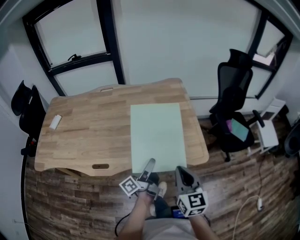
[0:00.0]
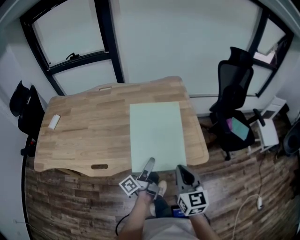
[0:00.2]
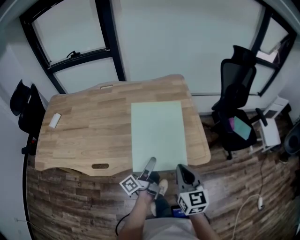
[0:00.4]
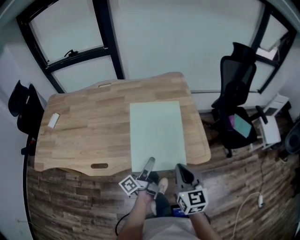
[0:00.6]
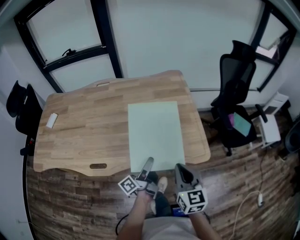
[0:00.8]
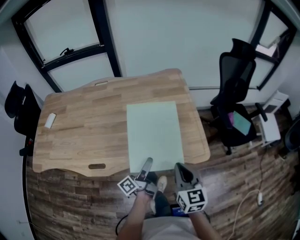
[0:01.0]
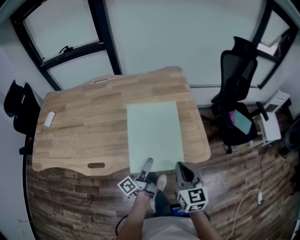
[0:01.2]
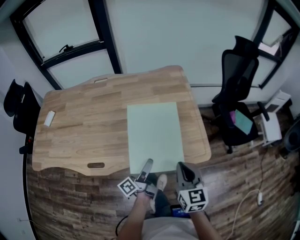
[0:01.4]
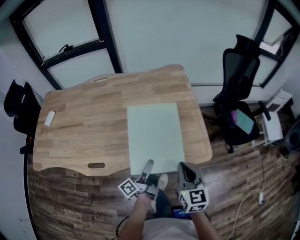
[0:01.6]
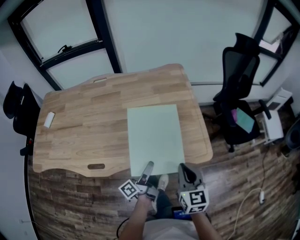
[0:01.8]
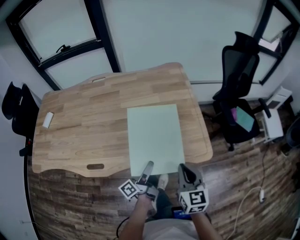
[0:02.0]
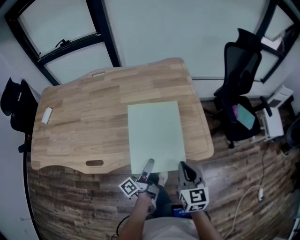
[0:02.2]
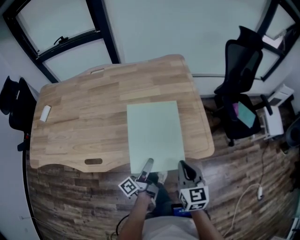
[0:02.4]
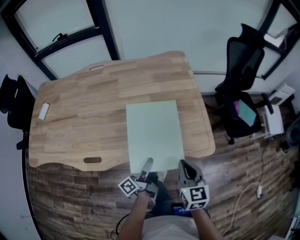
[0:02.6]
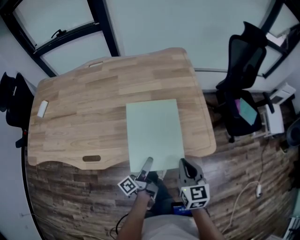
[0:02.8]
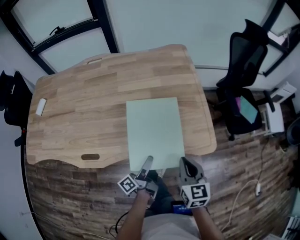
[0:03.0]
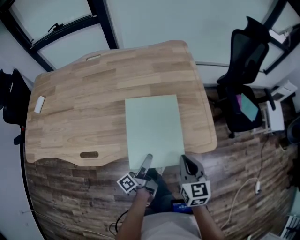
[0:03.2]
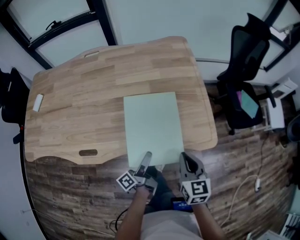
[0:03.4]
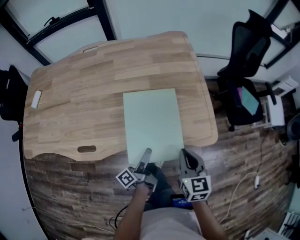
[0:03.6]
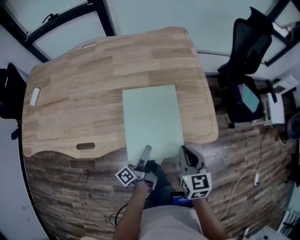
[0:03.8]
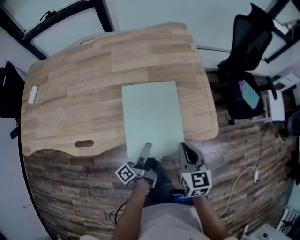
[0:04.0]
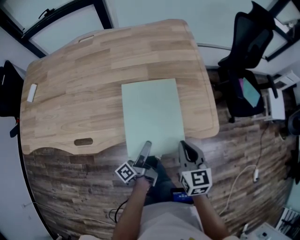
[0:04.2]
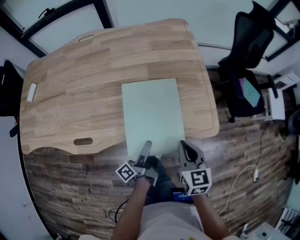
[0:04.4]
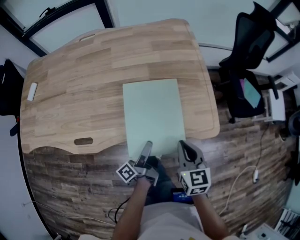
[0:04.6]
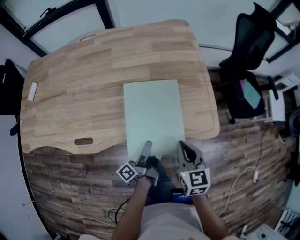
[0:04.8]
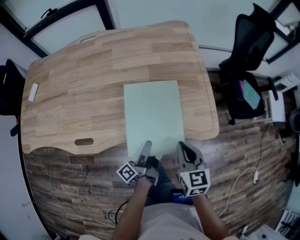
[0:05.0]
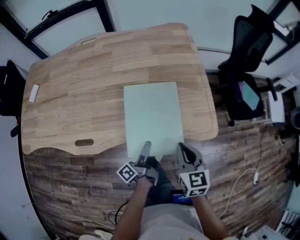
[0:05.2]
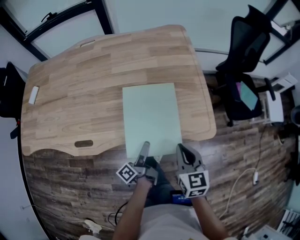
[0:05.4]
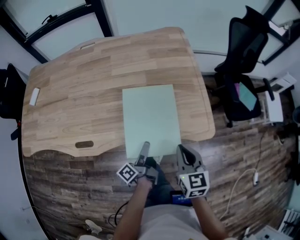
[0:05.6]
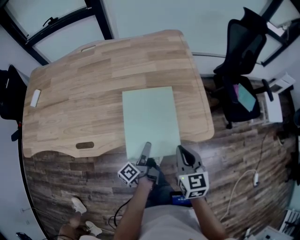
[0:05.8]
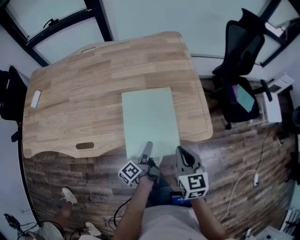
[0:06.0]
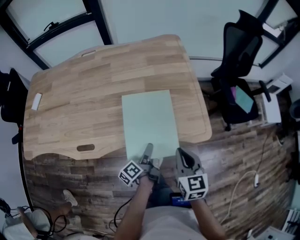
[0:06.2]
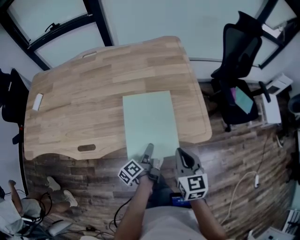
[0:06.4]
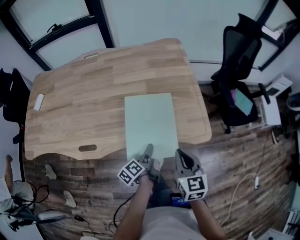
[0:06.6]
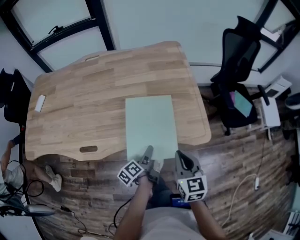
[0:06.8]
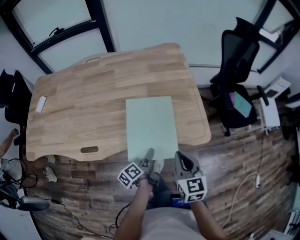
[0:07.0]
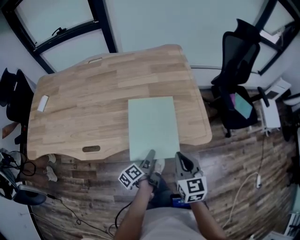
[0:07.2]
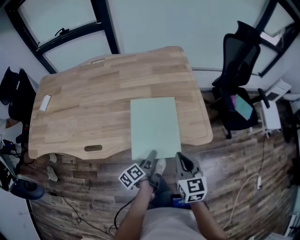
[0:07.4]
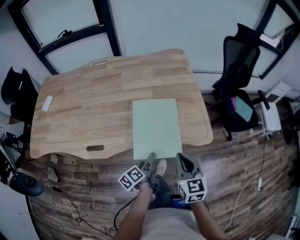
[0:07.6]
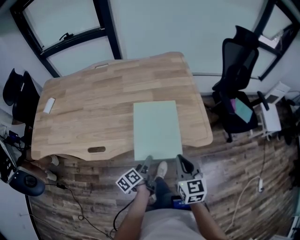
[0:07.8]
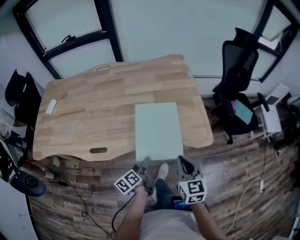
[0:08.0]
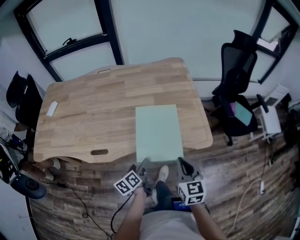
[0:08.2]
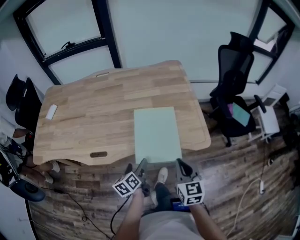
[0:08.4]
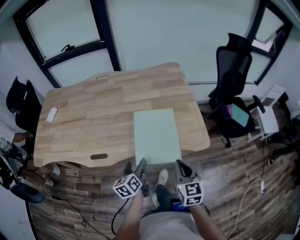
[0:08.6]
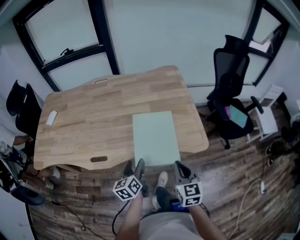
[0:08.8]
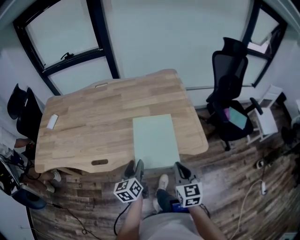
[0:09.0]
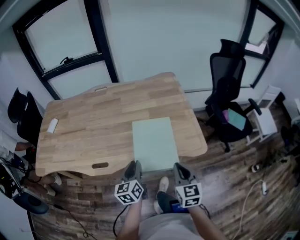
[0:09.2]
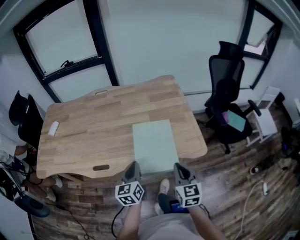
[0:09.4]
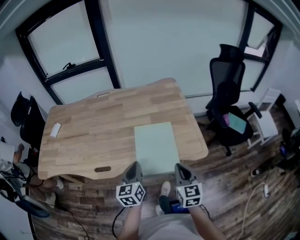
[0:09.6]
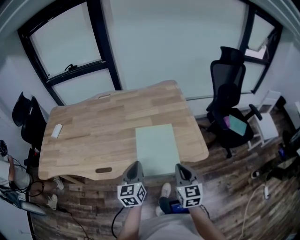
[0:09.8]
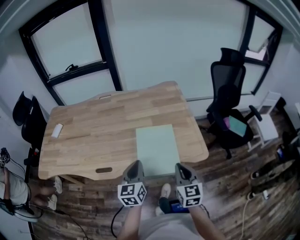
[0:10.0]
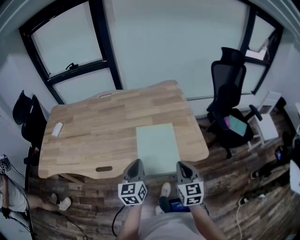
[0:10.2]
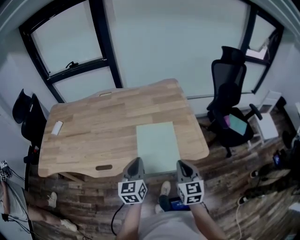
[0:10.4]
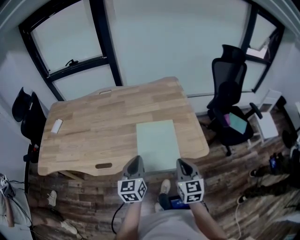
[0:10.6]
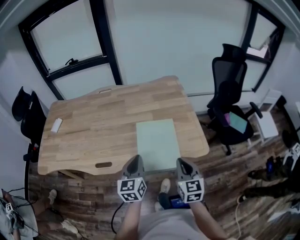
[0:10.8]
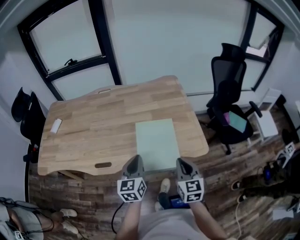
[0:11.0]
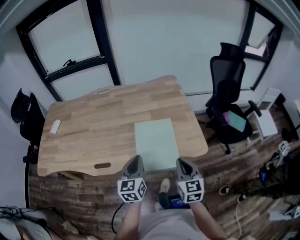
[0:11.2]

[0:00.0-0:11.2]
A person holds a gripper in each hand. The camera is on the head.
0:00.0 to 0:01.6: The right gripper travels downward by about 5 cm.
0:01.6 to 0:03.2: The right gripper is displaced downward by about 5 cm.

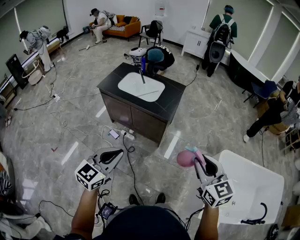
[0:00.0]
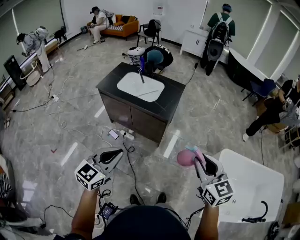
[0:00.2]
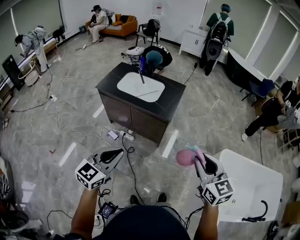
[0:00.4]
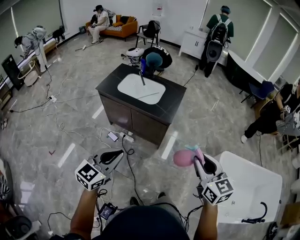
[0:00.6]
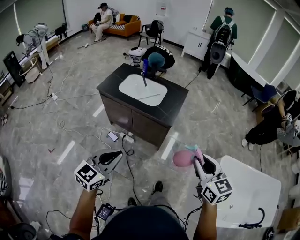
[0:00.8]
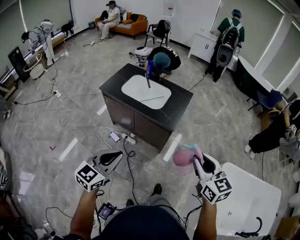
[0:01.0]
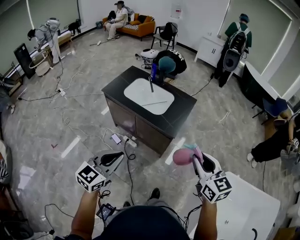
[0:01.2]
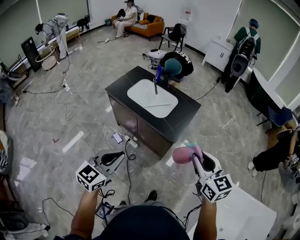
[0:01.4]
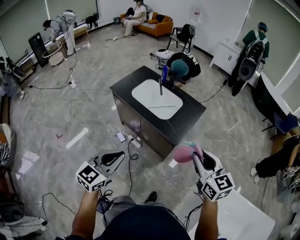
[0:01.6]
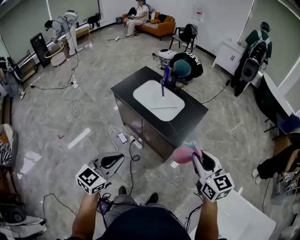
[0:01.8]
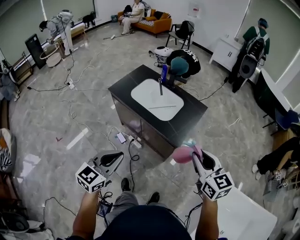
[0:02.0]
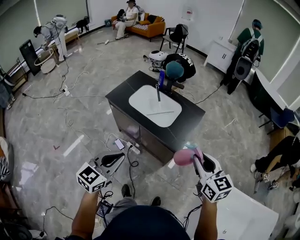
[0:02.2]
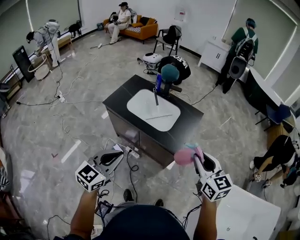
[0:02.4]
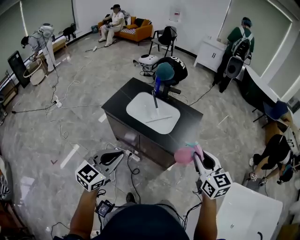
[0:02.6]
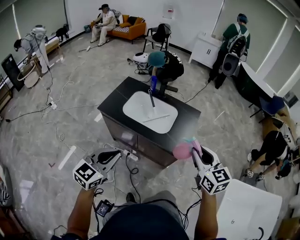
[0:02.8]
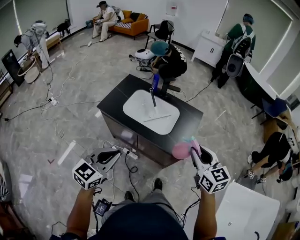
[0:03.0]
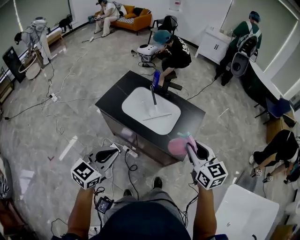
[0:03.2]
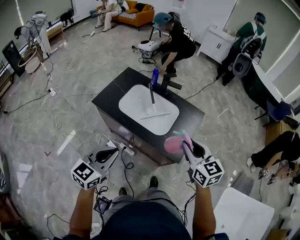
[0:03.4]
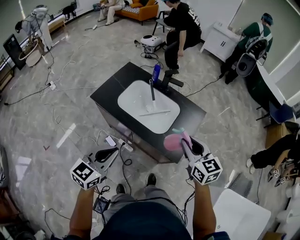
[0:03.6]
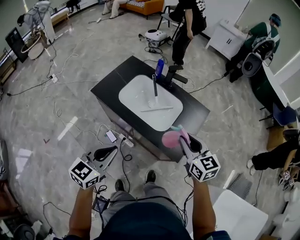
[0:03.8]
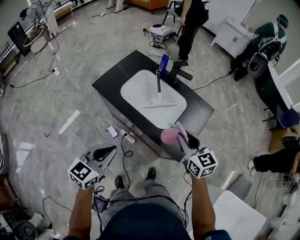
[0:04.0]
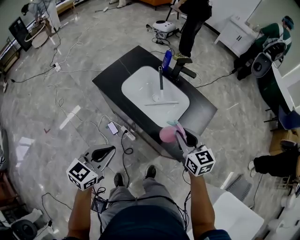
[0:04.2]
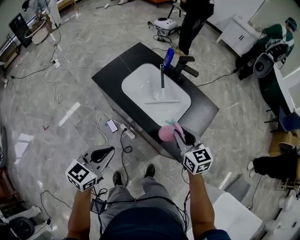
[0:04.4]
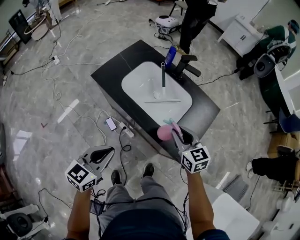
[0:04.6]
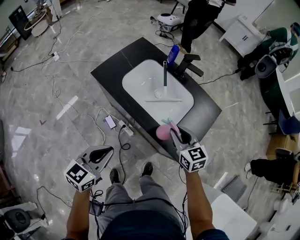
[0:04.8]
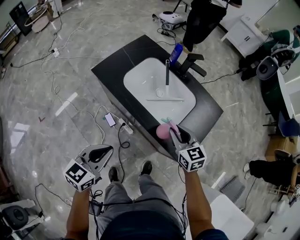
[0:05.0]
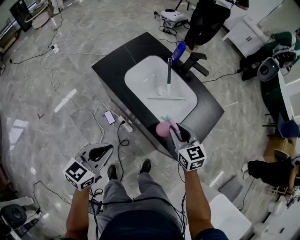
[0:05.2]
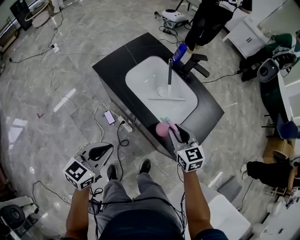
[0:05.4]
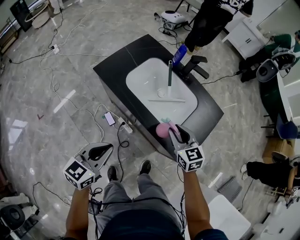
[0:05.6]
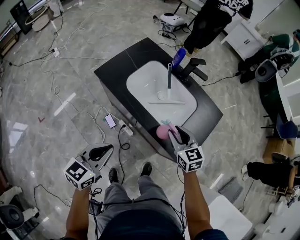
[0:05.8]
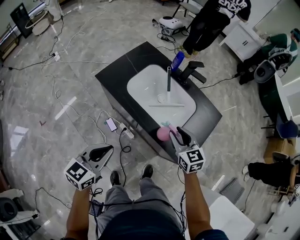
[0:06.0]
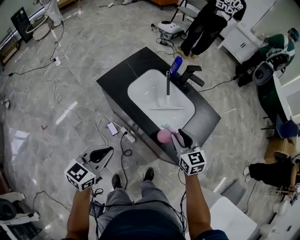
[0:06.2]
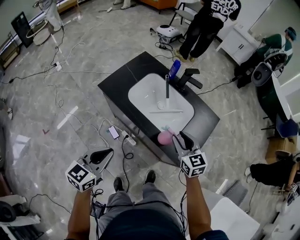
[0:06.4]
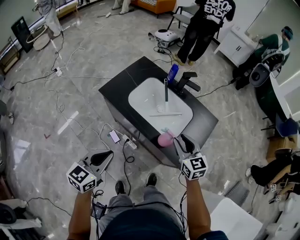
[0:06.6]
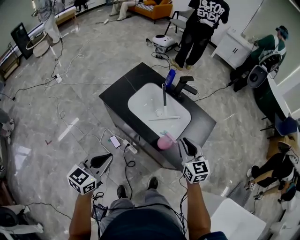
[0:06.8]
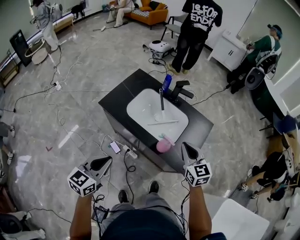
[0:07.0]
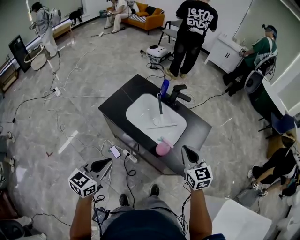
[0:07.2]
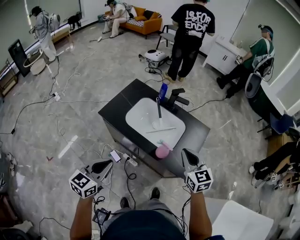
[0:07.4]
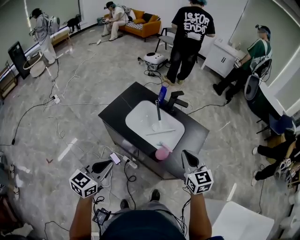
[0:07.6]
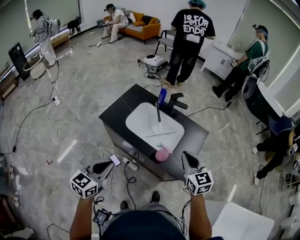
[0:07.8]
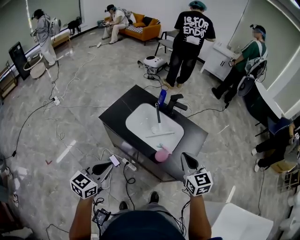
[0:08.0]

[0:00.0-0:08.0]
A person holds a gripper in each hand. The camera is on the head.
0:00.0 to 0:01.6: The right gripper travels forward by about 25 cm. Meanwhile the left gripper heads forward, covering about 15 cm.
0:01.6 to 0:03.2: Both grippers travel together forward and to the left, approximately 25 cm.
0:03.2 to 0:04.8: The left gripper is displaced downward by approximately 15 cm. Meanwhile the right gripper heads downward and forward, covering roughly 30 cm.
0:04.8 to 0:06.4: The right gripper heads upward, covering some 5 cm; the left gripper moves to the left, approximately 5 cm.
0:06.4 to 0:08.0: The left gripper travels upward by about 5 cm. Meanwhile the right gripper travels upward and backward by some 15 cm, and closes up.

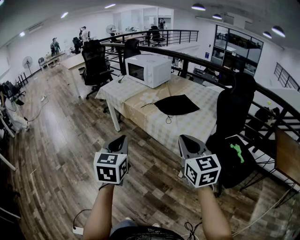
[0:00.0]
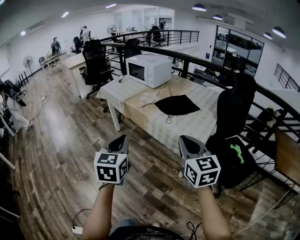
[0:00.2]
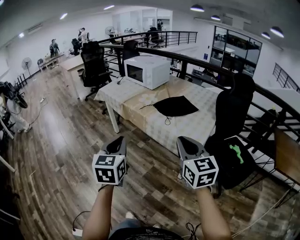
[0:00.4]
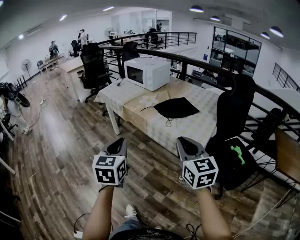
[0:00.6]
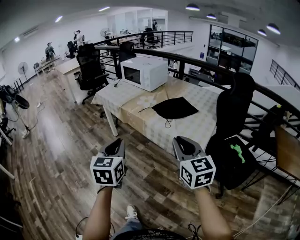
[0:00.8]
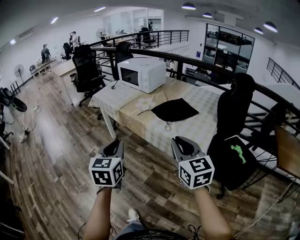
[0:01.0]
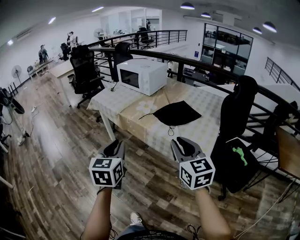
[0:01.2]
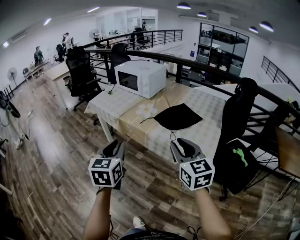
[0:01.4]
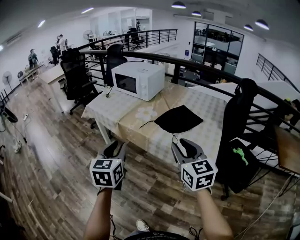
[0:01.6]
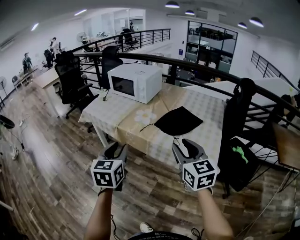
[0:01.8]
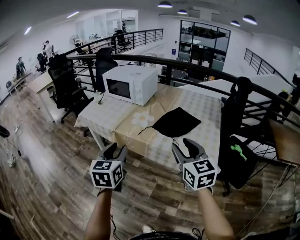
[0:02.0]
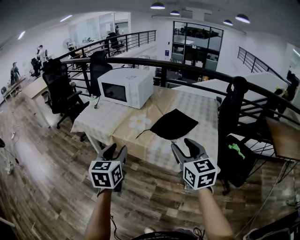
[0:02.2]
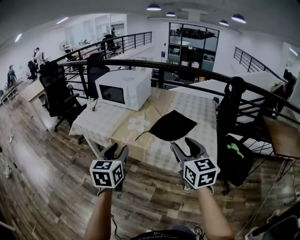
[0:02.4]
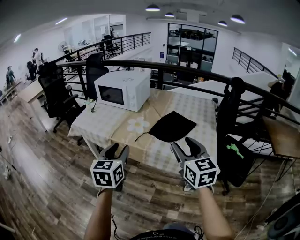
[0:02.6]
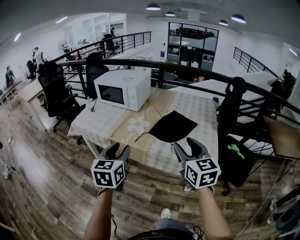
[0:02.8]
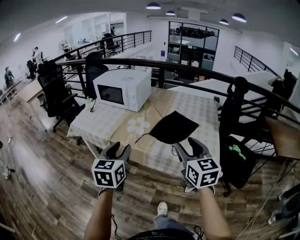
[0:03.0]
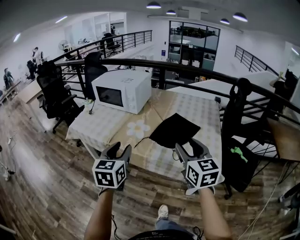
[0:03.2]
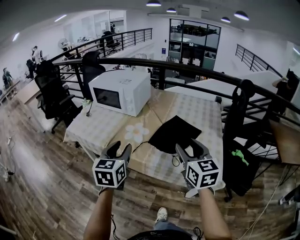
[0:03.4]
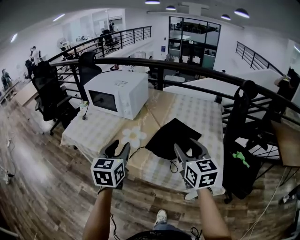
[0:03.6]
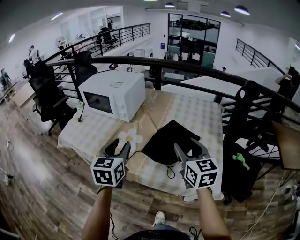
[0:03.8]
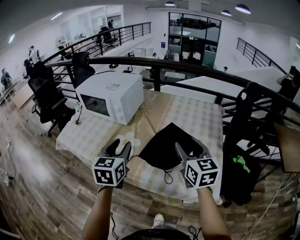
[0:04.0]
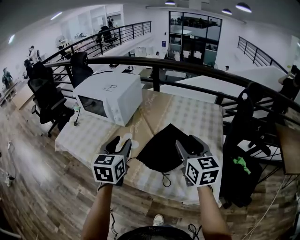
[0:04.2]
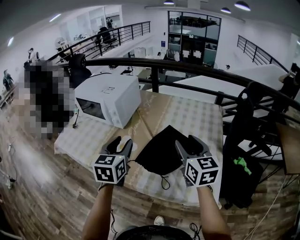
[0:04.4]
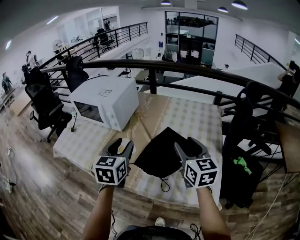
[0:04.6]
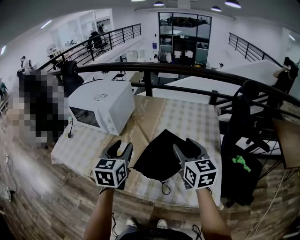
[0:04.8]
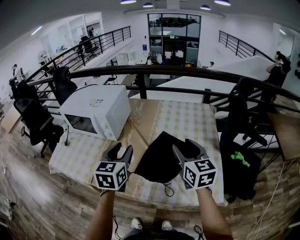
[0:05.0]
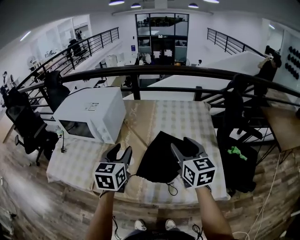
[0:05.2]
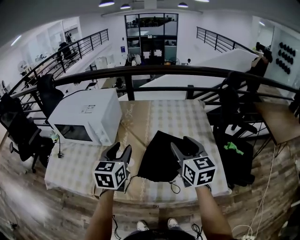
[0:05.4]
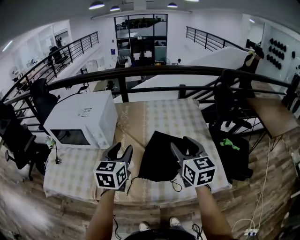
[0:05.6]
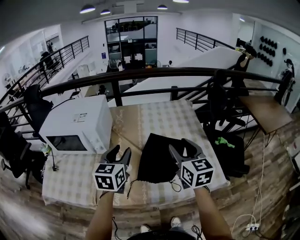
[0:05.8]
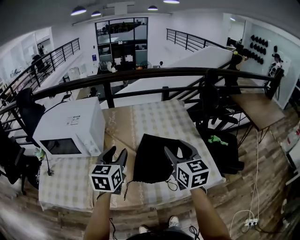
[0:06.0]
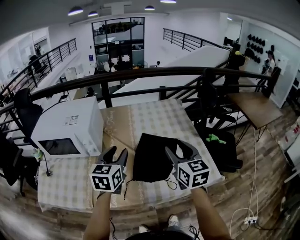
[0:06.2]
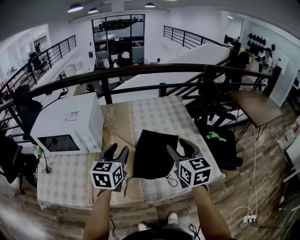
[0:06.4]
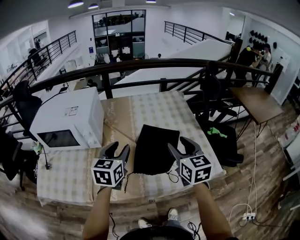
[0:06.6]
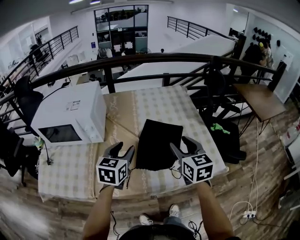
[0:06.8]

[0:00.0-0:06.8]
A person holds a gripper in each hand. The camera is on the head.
0:00.0 to 0:01.4: The left gripper travels forward by some 15 cm. Meanwhile the right gripper shifts some 15 cm forward and to the left.
0:01.4 to 0:02.8: The left gripper shifts some 15 cm forward; the right gripper goes roughly 10 cm forward, and opens.
0:02.8 to 0:04.0: The grippers both shift forward by some 25 cm.
0:04.0 to 0:05.4: The left gripper shifts about 10 cm forward, while the right gripper goes some 5 cm forward.
0:05.4 to 0:06.8: The grippers both shift downward by some 5 cm.
